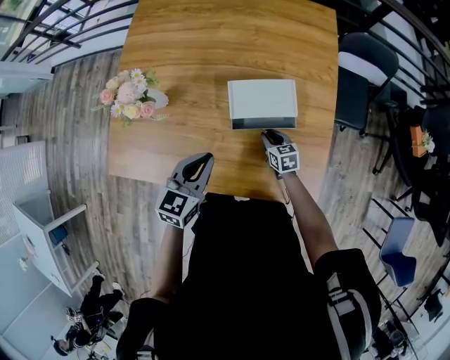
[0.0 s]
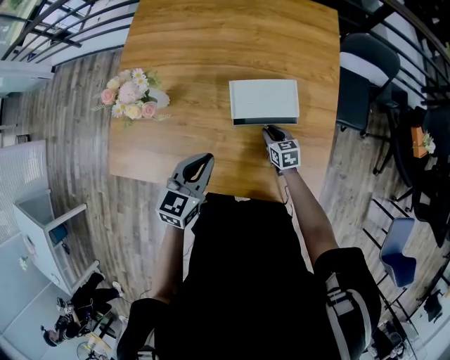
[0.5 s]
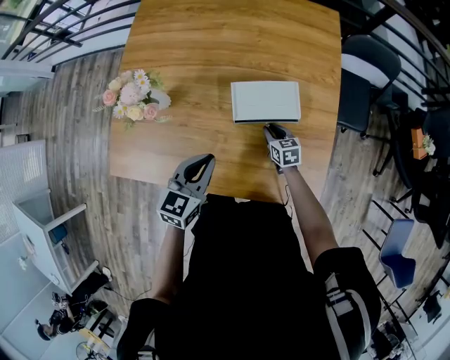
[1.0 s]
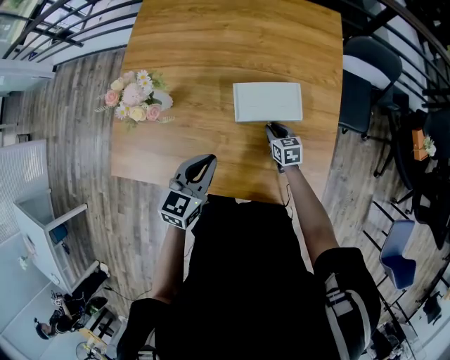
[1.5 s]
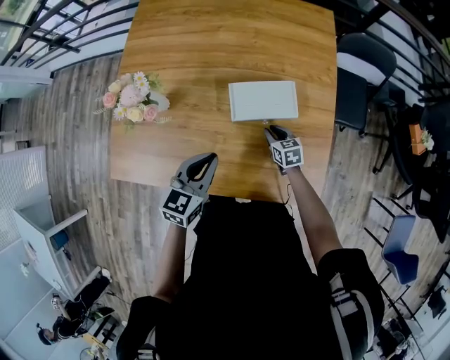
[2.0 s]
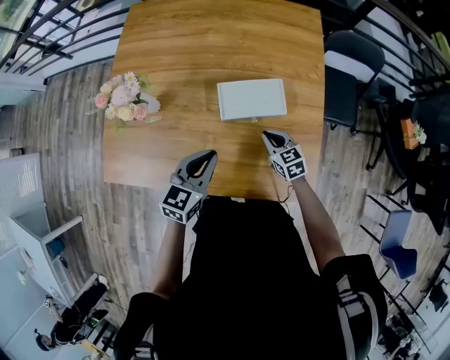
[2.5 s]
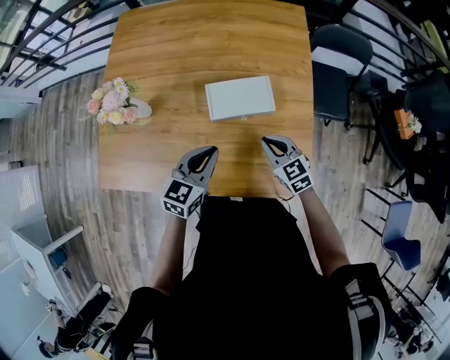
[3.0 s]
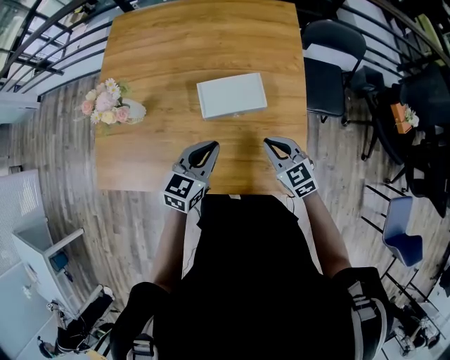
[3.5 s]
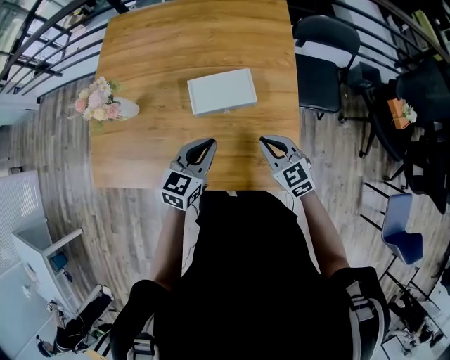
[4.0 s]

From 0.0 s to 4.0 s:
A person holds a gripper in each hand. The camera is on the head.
From 0.0 s to 2.0 s: The grippers move only a little.
From 2.0 s to 4.0 s: The left gripper is displaced to the right by some 15 cm, while the right gripper shifts about 25 cm upward, backward and to the right, and changes its angle by roughly 30 degrees.

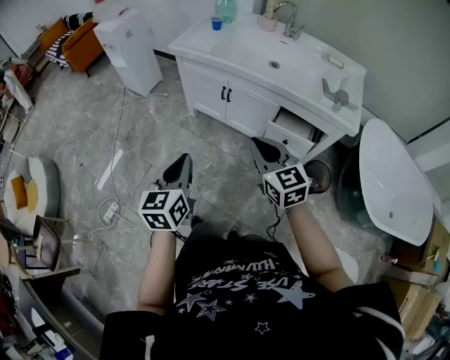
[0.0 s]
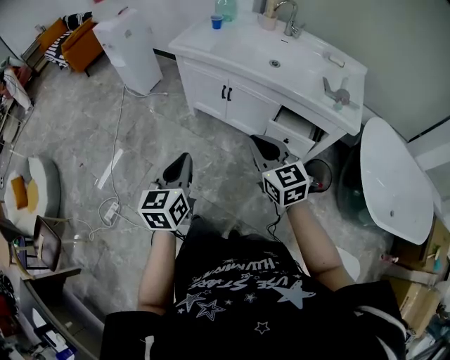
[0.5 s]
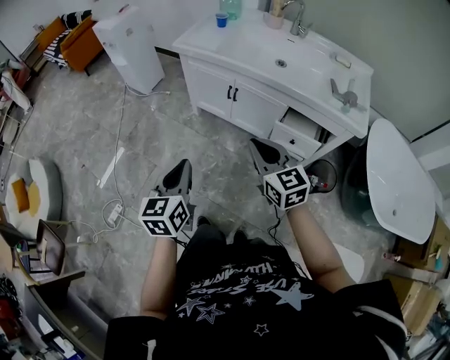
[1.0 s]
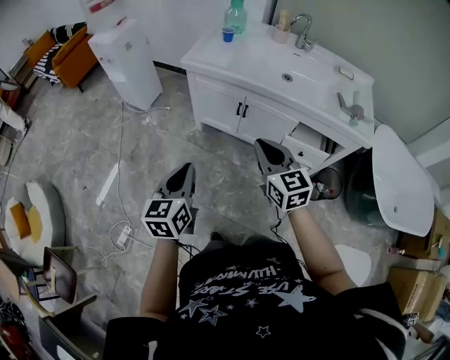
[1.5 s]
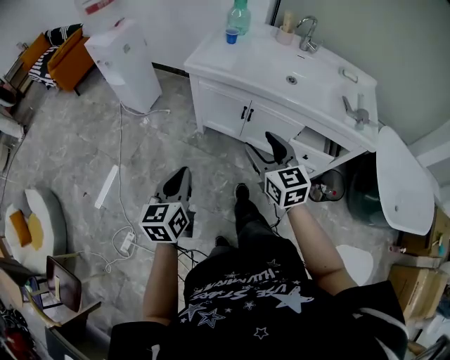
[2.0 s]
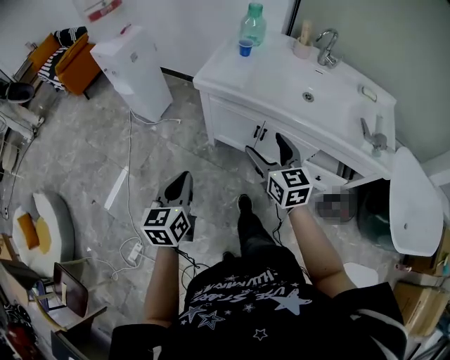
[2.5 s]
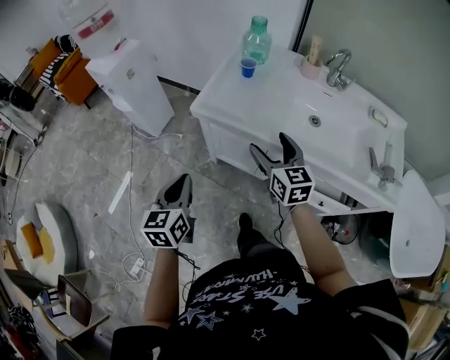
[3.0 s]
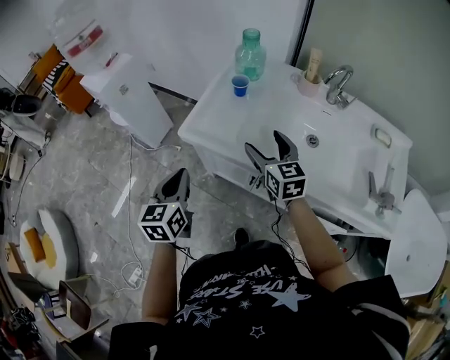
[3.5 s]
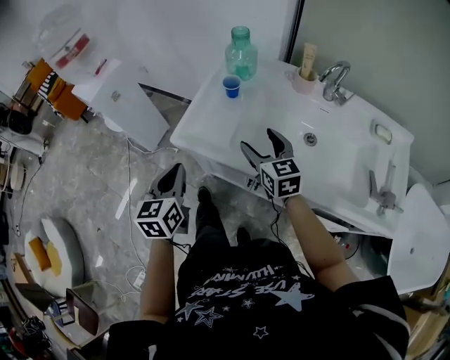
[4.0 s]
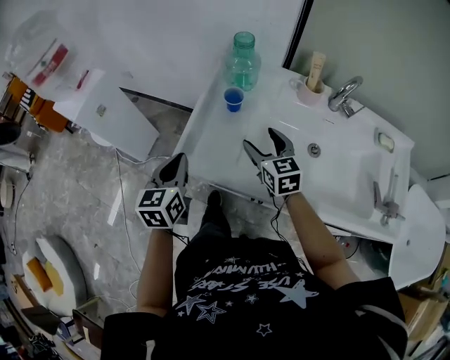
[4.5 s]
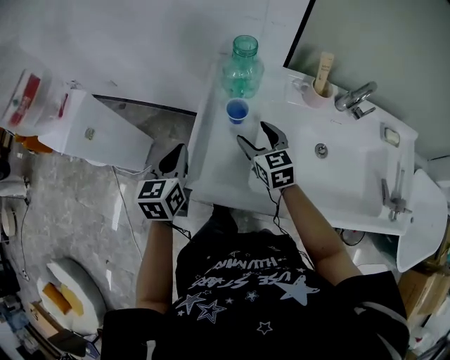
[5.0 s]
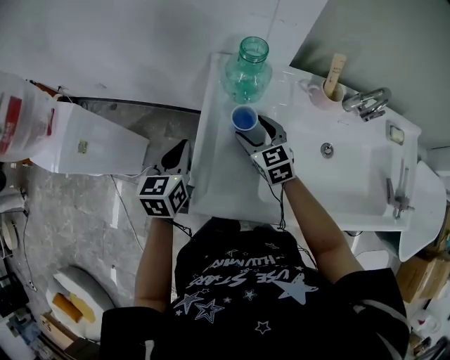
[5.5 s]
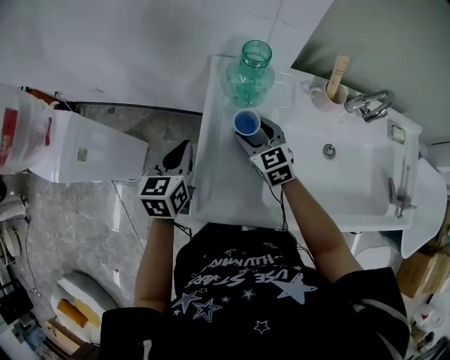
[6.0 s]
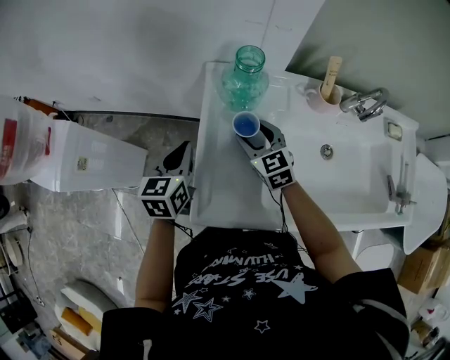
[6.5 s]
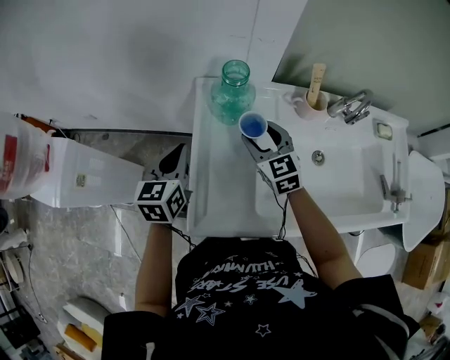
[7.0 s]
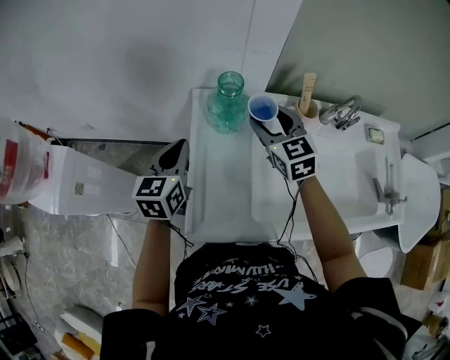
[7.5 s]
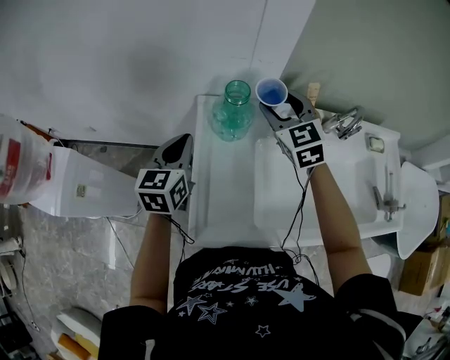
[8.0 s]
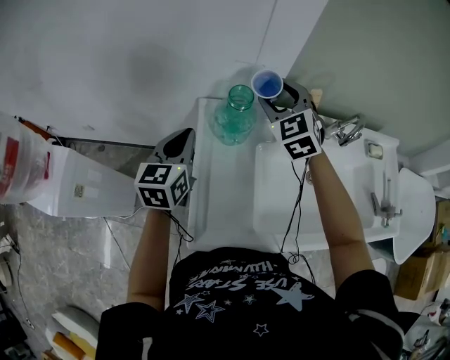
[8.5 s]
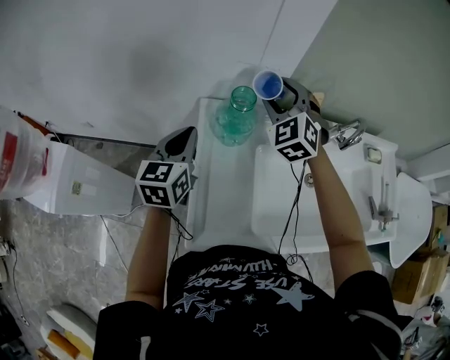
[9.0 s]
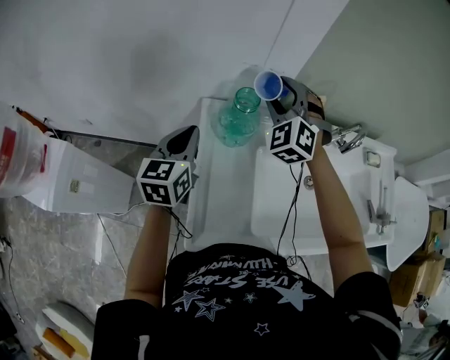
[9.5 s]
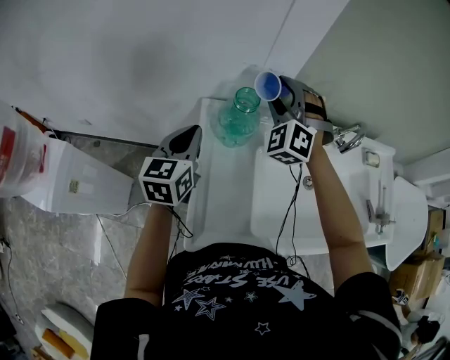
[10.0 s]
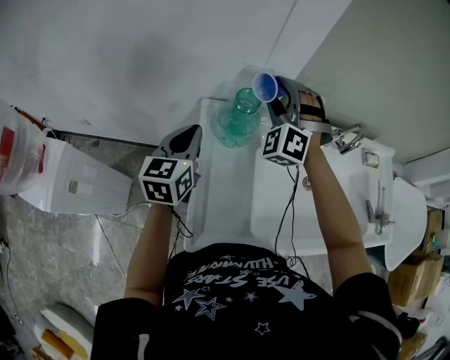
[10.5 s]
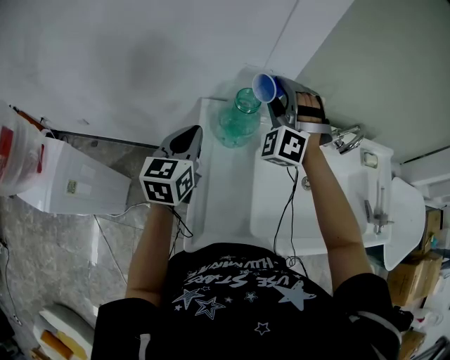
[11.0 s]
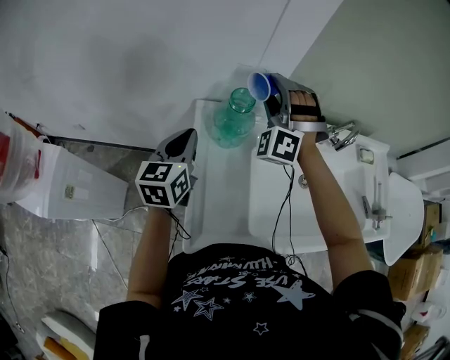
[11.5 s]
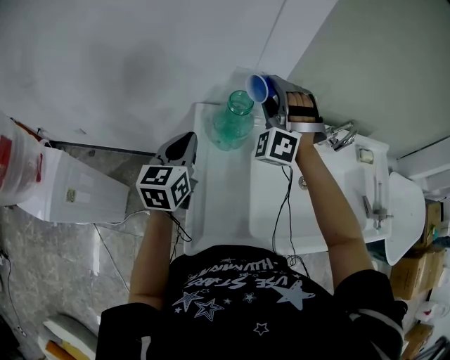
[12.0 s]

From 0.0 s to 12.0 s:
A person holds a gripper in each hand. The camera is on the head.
From 0.0 s to 2.0 s: The right gripper goes about 20 cm forward and to the left, and opens. The left gripper goes roughly 20 cm to the left and forward.
From 2.0 s to 4.0 s: The two grippers go about 40 cm forward.
From 4.0 s to 6.0 s: The right gripper shifts about 25 cm forward and downward; the left gripper shifts some 35 cm forward, and turns by about 20 degrees.
From 6.0 s to 8.0 s: The left gripper heads upward and forward, covering some 10 cm; the right gripper moves upward, forward and to the right, approximately 25 cm, and swivels some 20 degrees.
From 8.0 s to 10.0 s: The right gripper ends up roughly 5 cm from where it was, and rolls counterclockwise, seen from behind, by roughly 50 degrees.
From 10.0 s to 12.0 s: The grippers make only small movements.

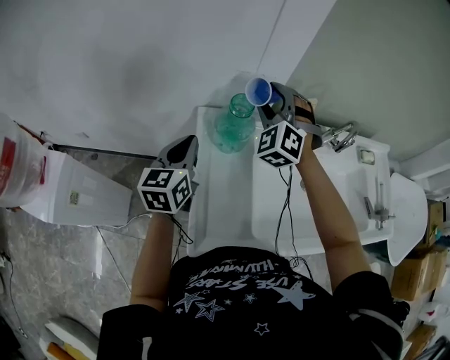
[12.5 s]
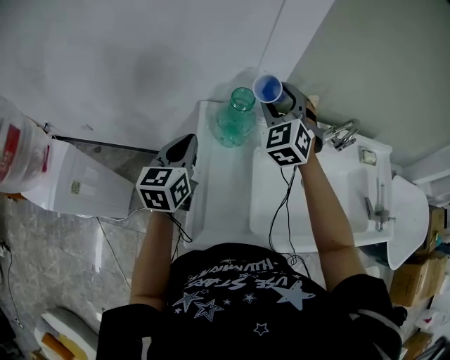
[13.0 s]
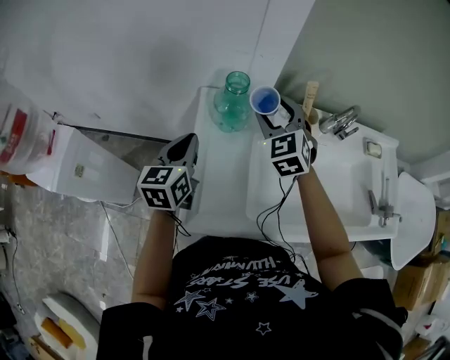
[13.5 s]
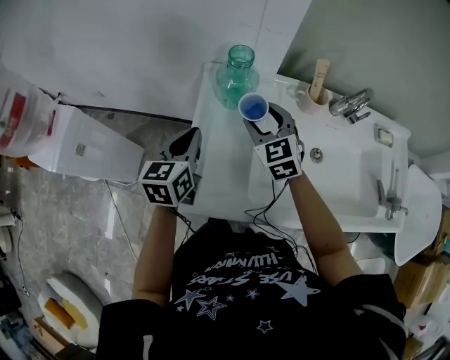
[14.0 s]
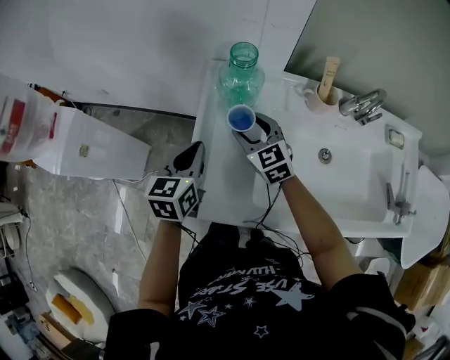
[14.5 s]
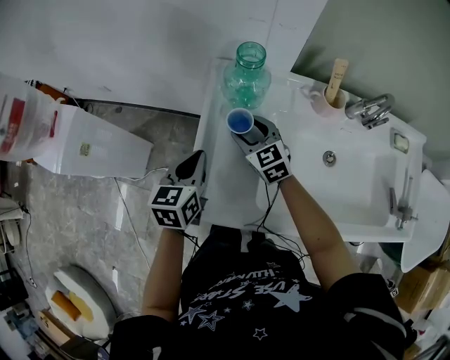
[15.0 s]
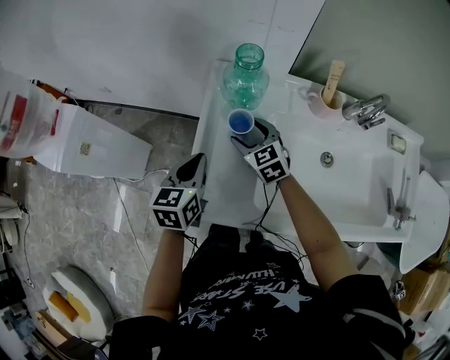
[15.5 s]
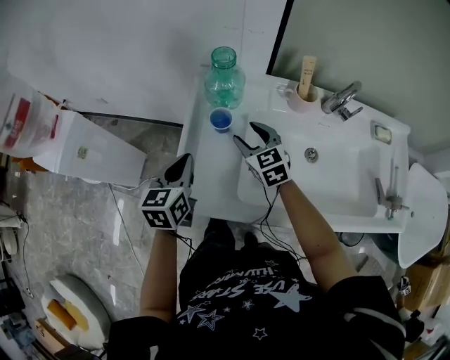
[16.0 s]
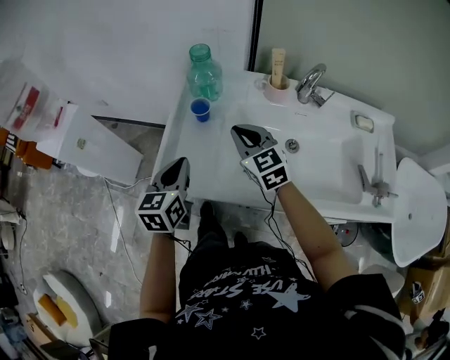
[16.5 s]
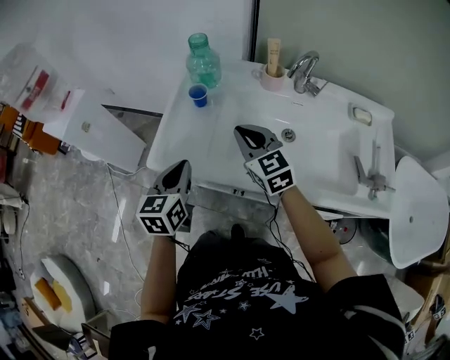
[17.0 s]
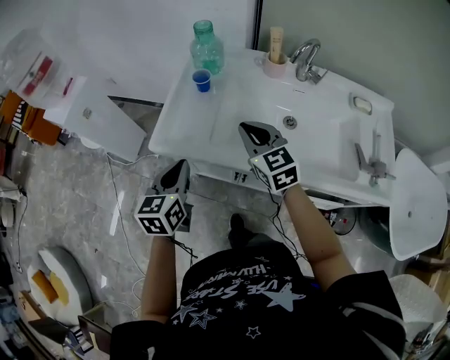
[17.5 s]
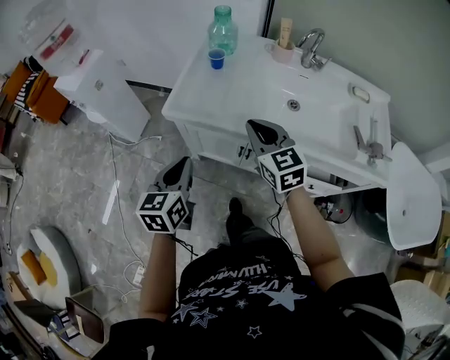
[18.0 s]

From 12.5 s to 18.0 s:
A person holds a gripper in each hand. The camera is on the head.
From 12.5 s to 14.5 s: The right gripper is displaced downward and backward by some 25 cm, and turns by some 60 degrees; the left gripper shifts roughly 15 cm backward and downward.
From 14.5 s to 16.0 s: The right gripper changes place by some 5 cm.
From 16.0 s to 18.0 s: Both grippers move backward, roughly 35 cm. The right gripper closes up.

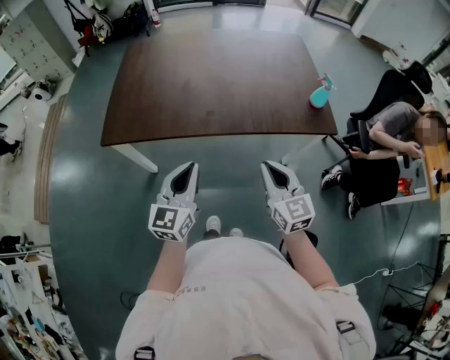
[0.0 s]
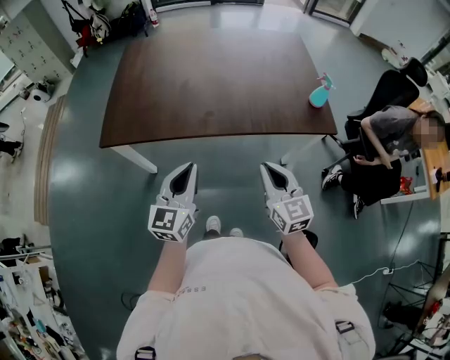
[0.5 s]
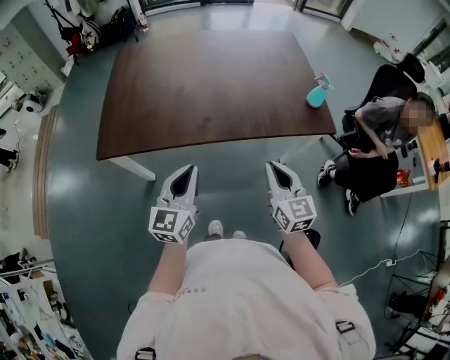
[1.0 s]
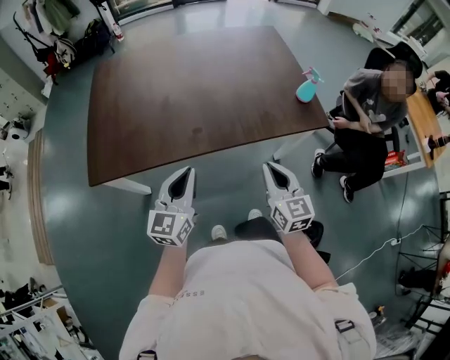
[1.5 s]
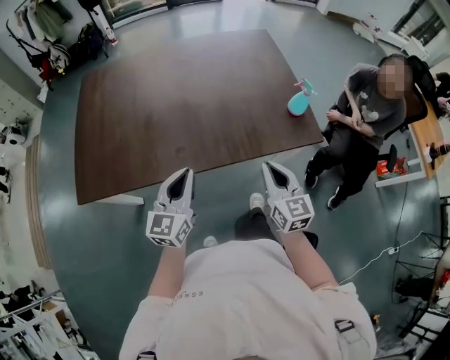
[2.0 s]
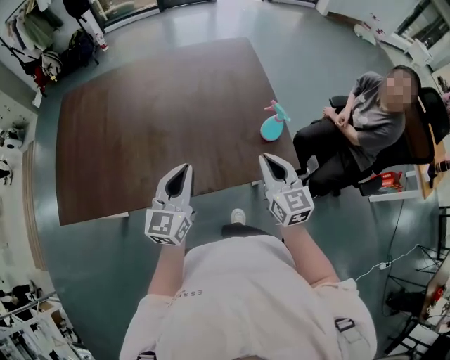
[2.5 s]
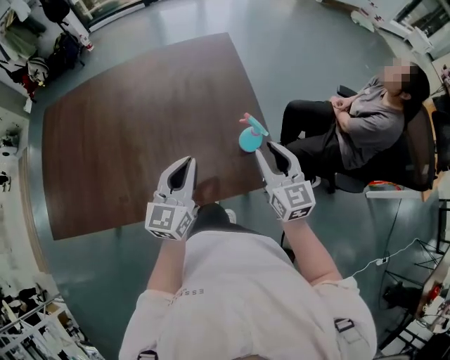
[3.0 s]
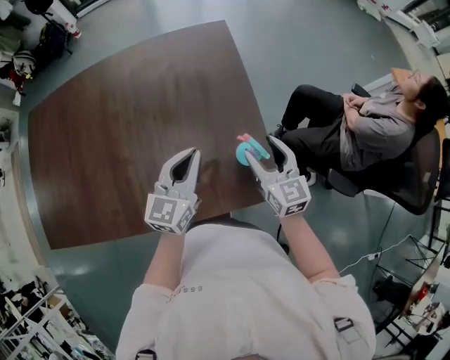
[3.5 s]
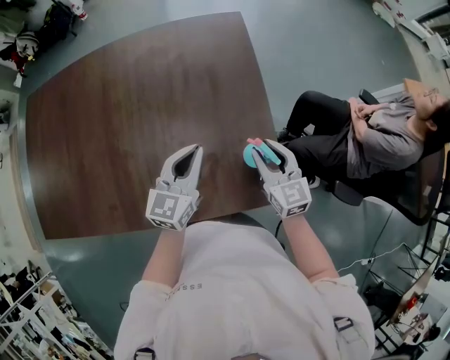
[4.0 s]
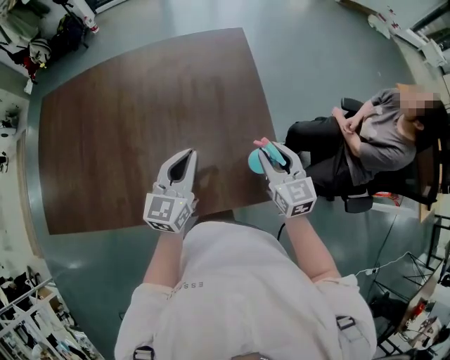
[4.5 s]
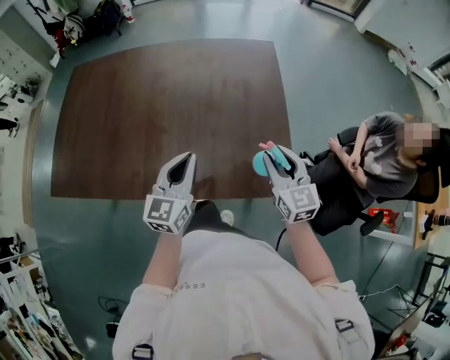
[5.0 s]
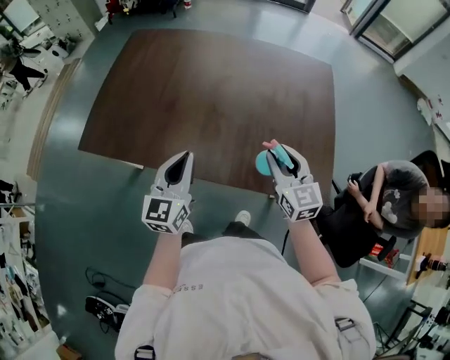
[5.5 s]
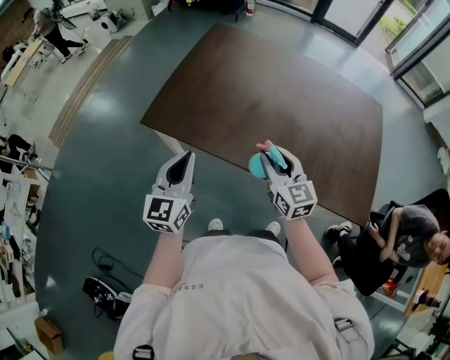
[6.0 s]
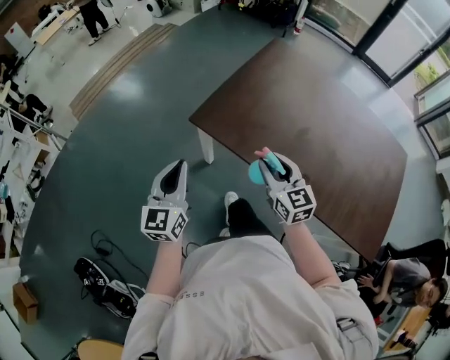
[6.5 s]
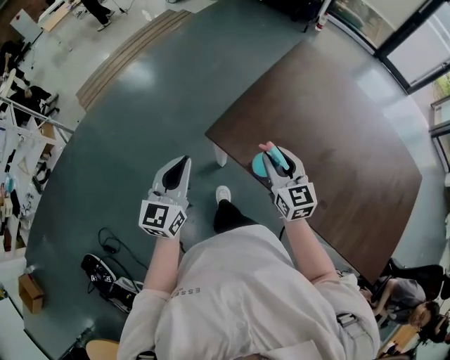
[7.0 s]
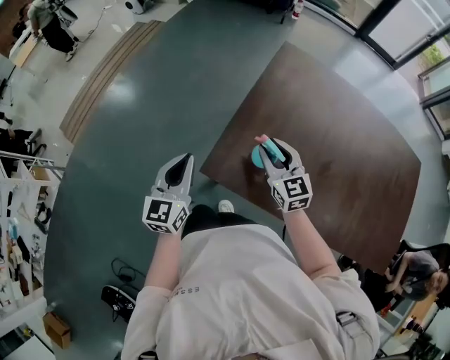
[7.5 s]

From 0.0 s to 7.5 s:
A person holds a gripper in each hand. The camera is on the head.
From 0.0 s to 2.0 s: The right gripper goes roughly 15 cm forward and to the right, while the left gripper goes some 15 cm forward.
From 2.0 s to 4.0 s: Both grippers move forward and to the right, roughly 35 cm. The right gripper opens.
From 4.0 s to 5.5 s: The left gripper goes approximately 35 cm to the left and backward, and changes its angle by some 30 degrees. The right gripper heads to the left and upward, covering about 25 cm.
From 5.5 s to 7.5 s: The two grippers travel together, roughly 60 cm. The right gripper rotates roughly 20 degrees.
